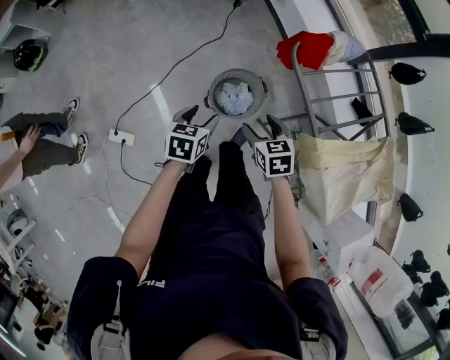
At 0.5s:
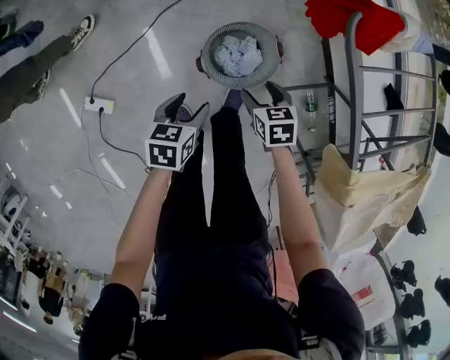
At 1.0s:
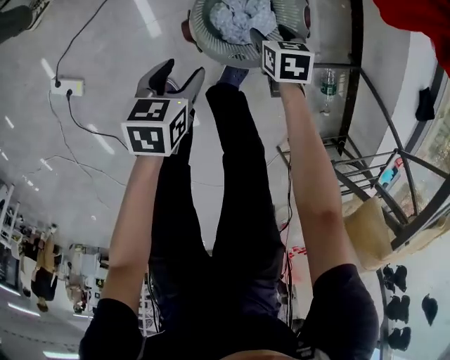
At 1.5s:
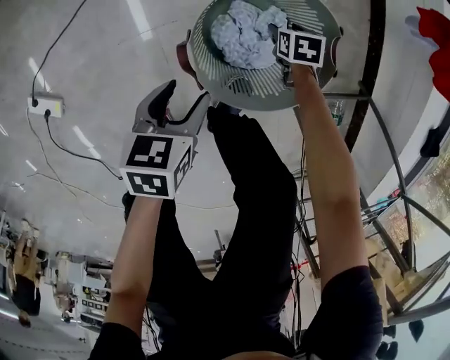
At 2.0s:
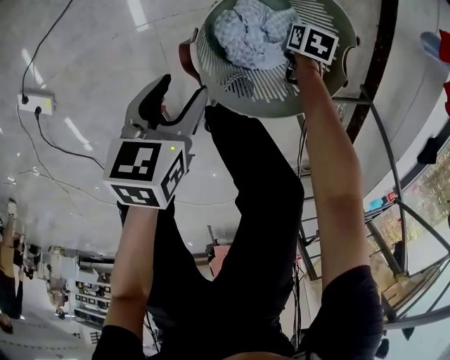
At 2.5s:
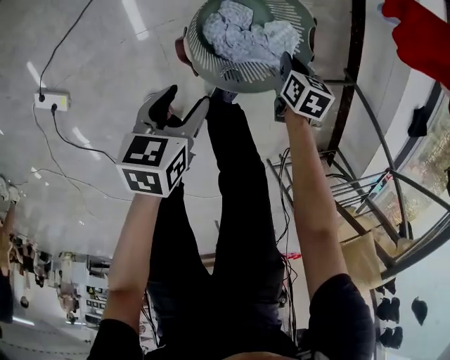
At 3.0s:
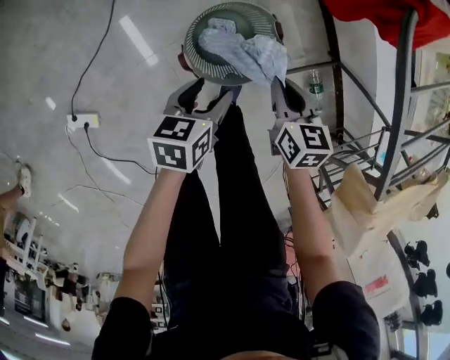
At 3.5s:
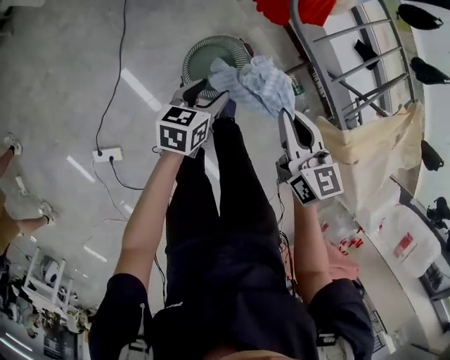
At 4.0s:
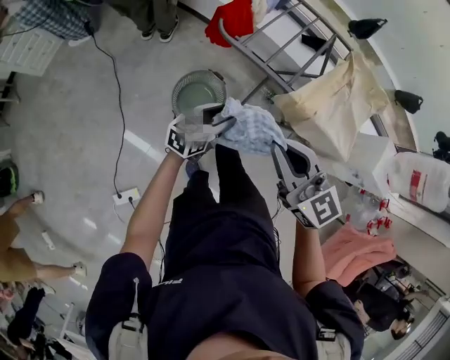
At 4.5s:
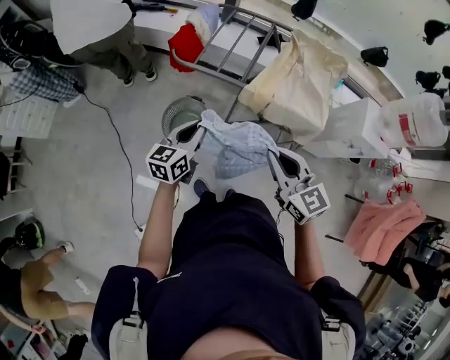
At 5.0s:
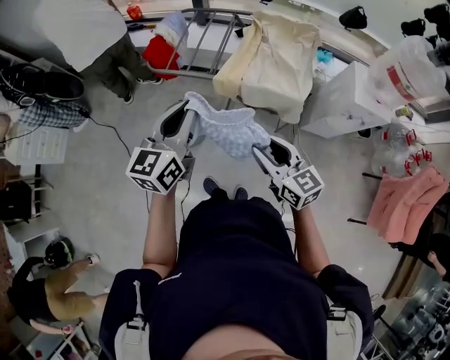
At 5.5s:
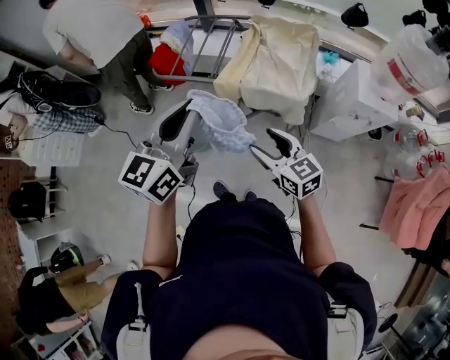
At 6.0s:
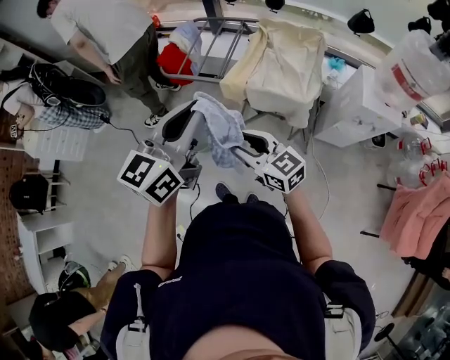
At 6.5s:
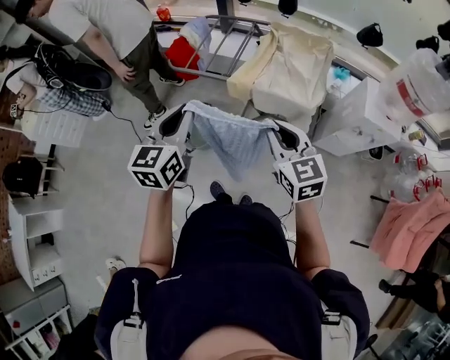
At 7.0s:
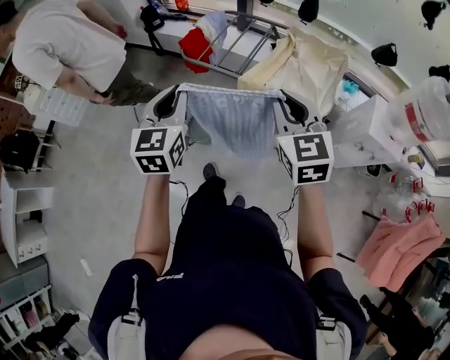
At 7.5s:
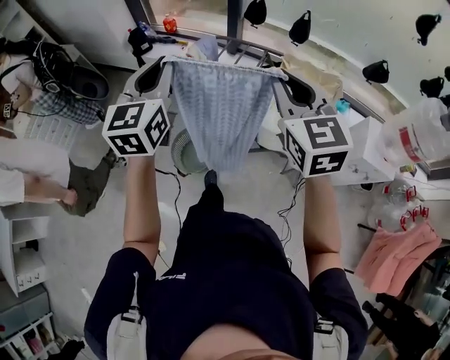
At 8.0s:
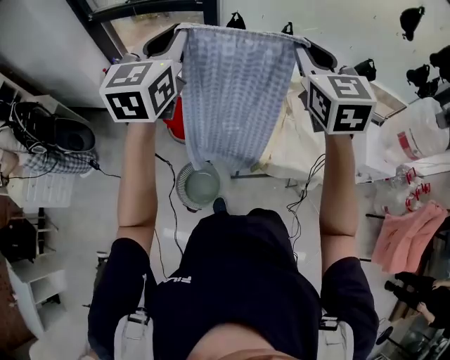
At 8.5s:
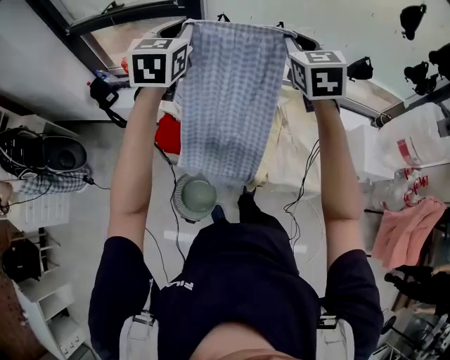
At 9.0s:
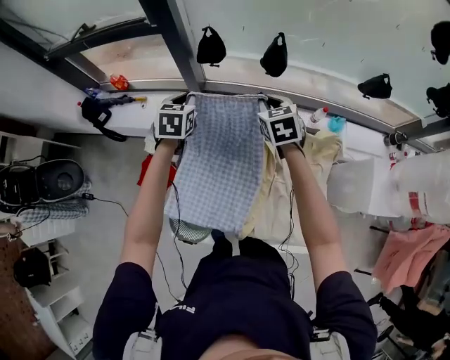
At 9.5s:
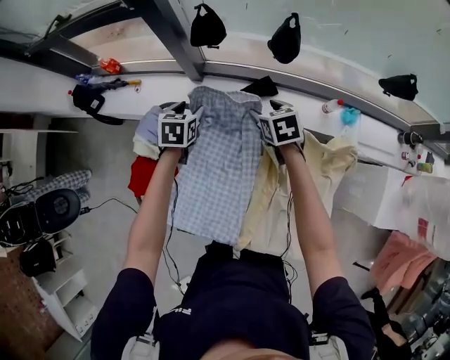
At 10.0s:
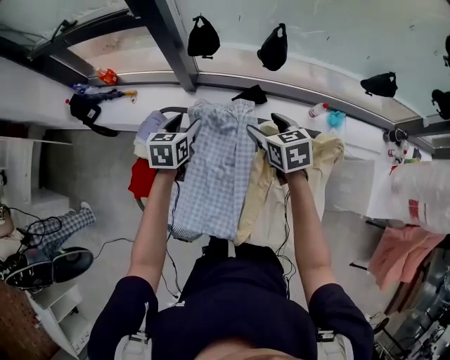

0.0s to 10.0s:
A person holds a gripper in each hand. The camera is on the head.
0.0s to 2.0s: Both grippers travel together downward, approximately 60 cm. The left gripper rotates roughly 20 degrees. Meanwhile the right gripper turns by approximately 30 degrees, and closes its fingers.
2.0s to 4.0s: The right gripper moves upward, some 1 m, and angles its fingers upward, by approximately 70 degrees, while the left gripper heads upward, covering about 50 cm, and points its fingers roughly 30 degrees further upward.
4.0s to 6.0s: The right gripper heads to the right and backward, covering roughly 20 cm, and opens; the left gripper moves upward and to the right, some 40 cm, rotates roughly 30 degrees, and closes up.
6.0s to 8.0s: The two grippers travel together, forward, roughly 40 cm. The left gripper turns by roughly 20 degrees. Meanwhile the right gripper travels upward by roughly 30 cm, swivels about 50 degrees, and closes up.
8.0s to 10.0s: The grippers both shift downward and forward by about 50 cm. The right gripper tilts its fingers roughly 30 degrees downward, and opens; the left gripper angles its fingers downward, by roughly 40 degrees, and opens up.

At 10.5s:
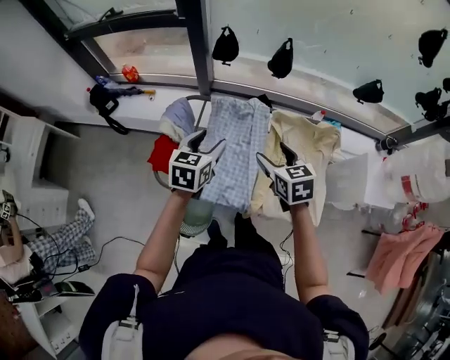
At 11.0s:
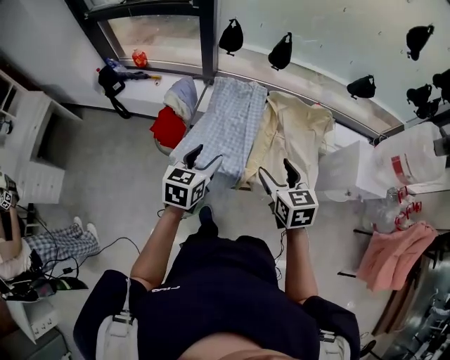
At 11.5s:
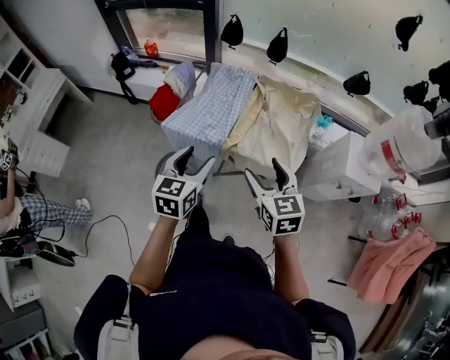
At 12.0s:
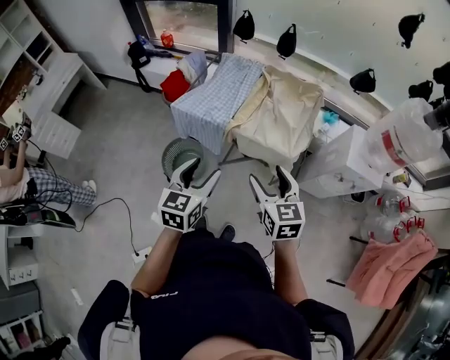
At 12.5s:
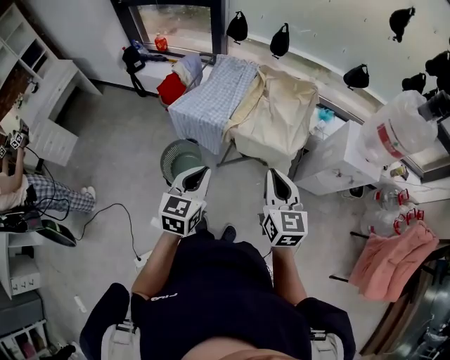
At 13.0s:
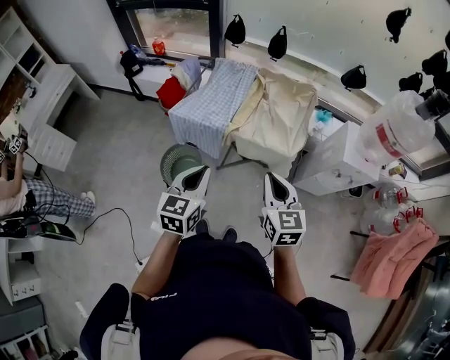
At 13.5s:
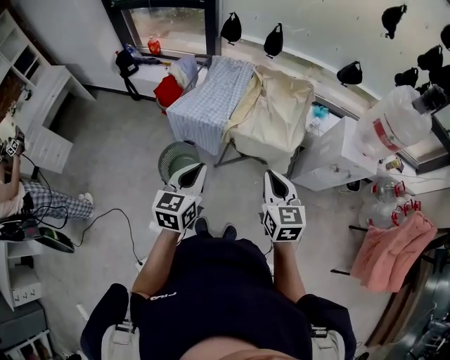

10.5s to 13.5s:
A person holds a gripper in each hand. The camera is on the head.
10.5s to 12.0s: Both grippers are carried backward, roughly 40 cm.
12.0s to 13.5s: The left gripper closes up, while the right gripper closes its fingers.

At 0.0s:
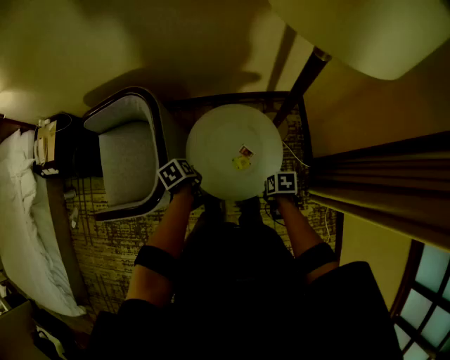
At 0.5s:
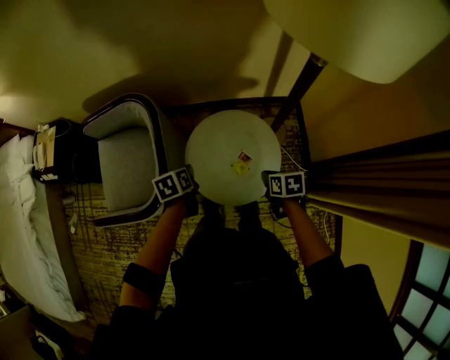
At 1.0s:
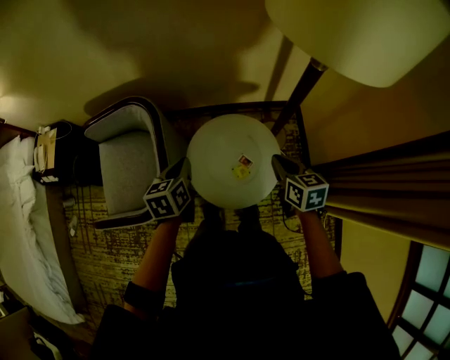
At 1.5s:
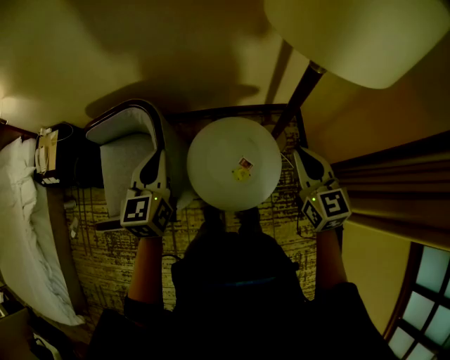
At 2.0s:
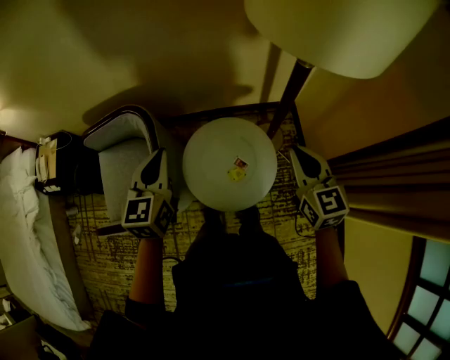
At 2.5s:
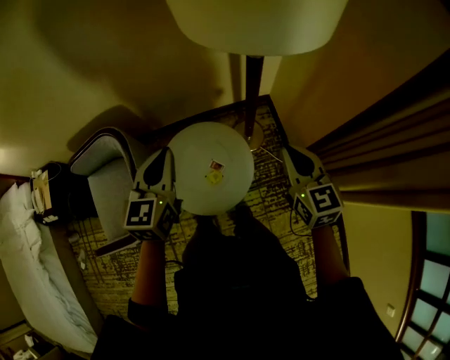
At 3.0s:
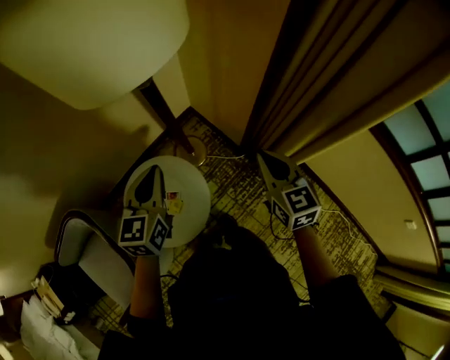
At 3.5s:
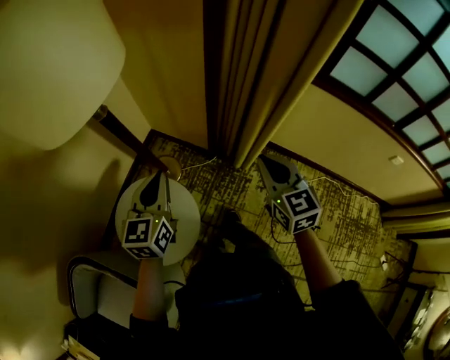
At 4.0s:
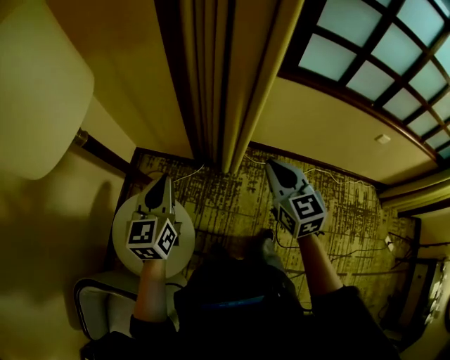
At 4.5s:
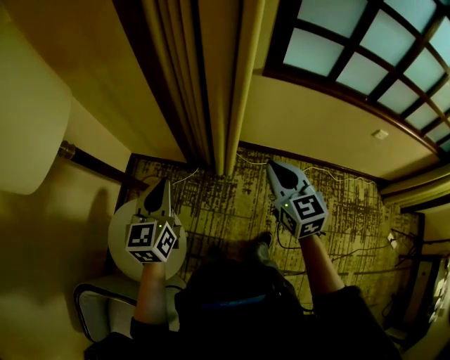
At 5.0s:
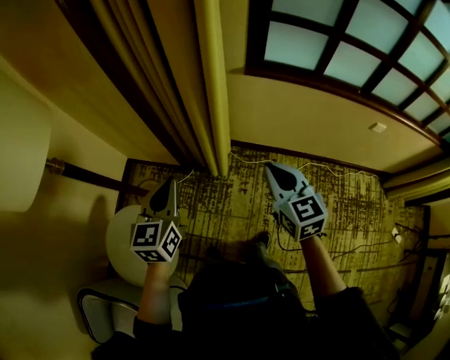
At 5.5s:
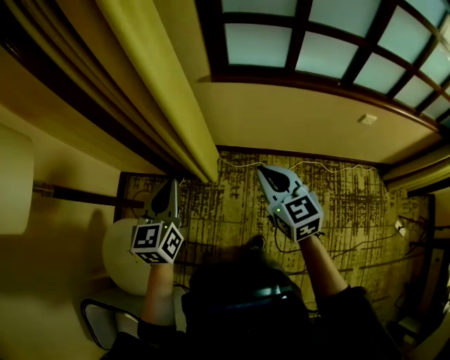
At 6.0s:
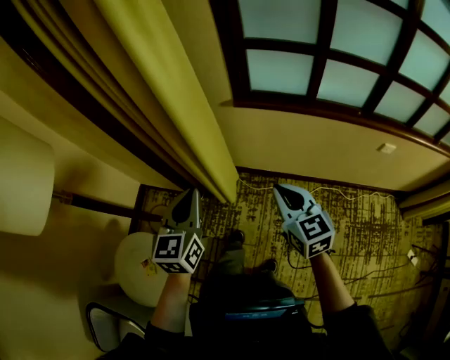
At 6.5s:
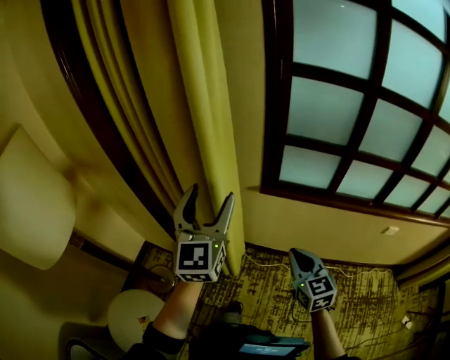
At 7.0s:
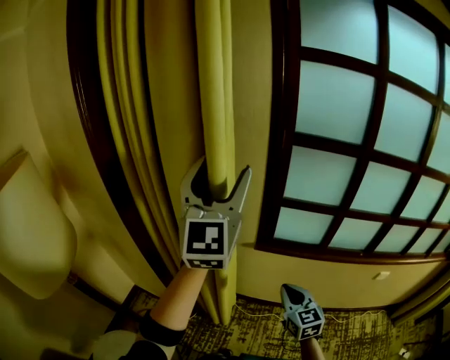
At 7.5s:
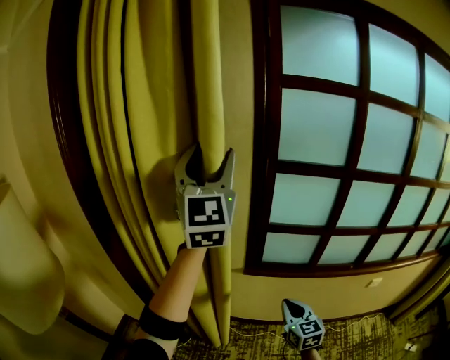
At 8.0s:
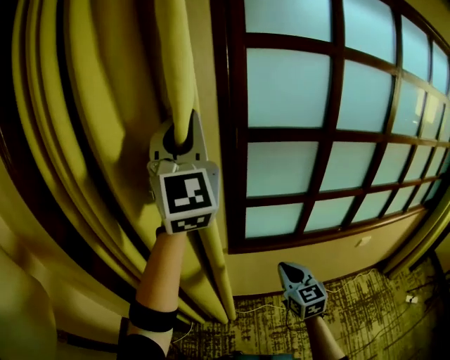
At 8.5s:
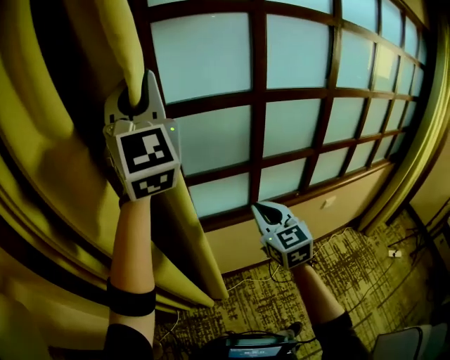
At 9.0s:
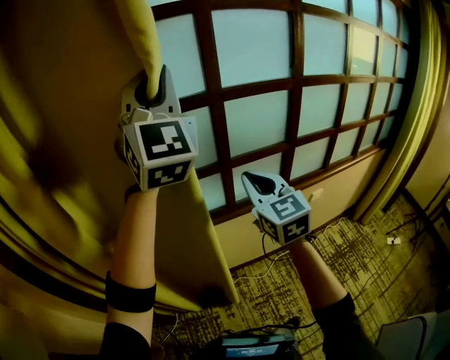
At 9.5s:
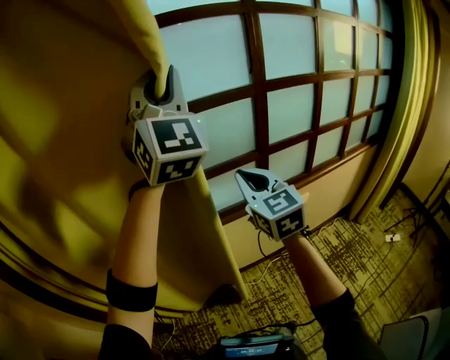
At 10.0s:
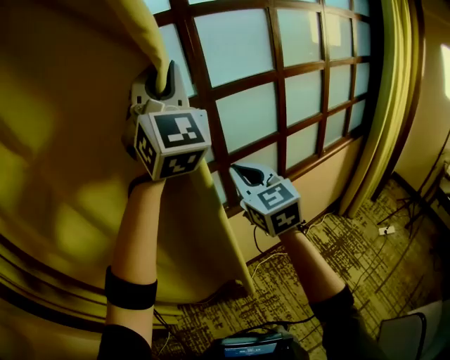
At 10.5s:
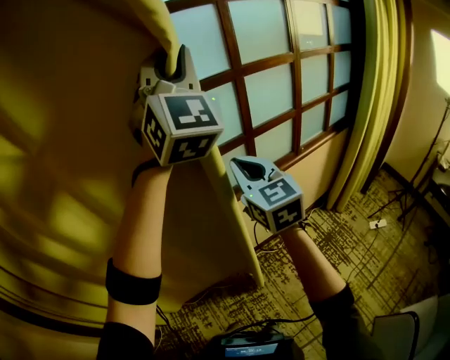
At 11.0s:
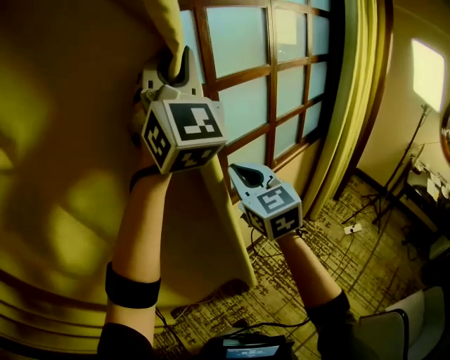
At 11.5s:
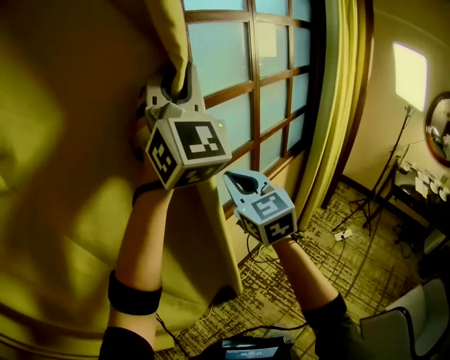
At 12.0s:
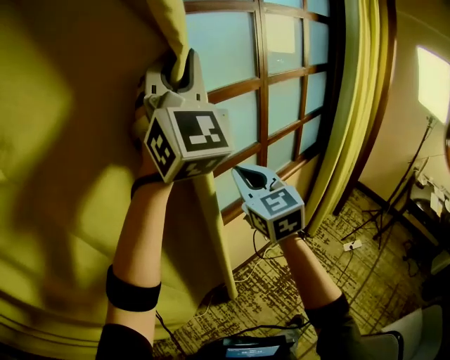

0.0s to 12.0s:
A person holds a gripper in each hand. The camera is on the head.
0.0s to 2.0s: The grippers both shift upward by approximately 35 cm. The left gripper tips its fingers upward by about 50 degrees; the right gripper angles its fingers upward, by some 60 degrees.
2.0s to 4.0s: The left gripper shifts by about 40 cm, and turns by roughly 70 degrees. Meanwhile the right gripper ends up about 40 cm from where it was, and turns by about 70 degrees.
4.0s to 6.0s: Both grippers travel together to the right, some 30 cm.
6.0s to 8.0s: The right gripper heads forward and upward, covering some 20 cm, and swivels some 20 degrees; the left gripper heads upward and forward, covering about 60 cm, tilts its fingers roughly 40 degrees upward, and opens, then closes once more.
8.0s to 10.0s: The pair of grippers is taken to the right, approximately 50 cm. The right gripper shifts some 20 cm upward.
10.0s to 12.0s: The right gripper heads to the right and forward, covering about 35 cm; the left gripper moves to the right, some 30 cm.

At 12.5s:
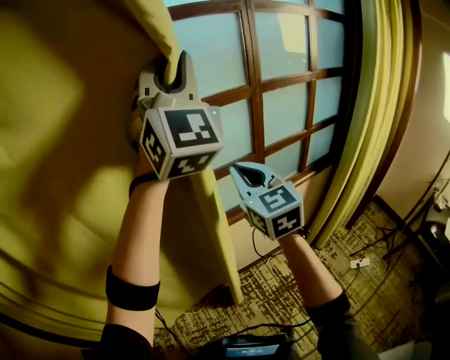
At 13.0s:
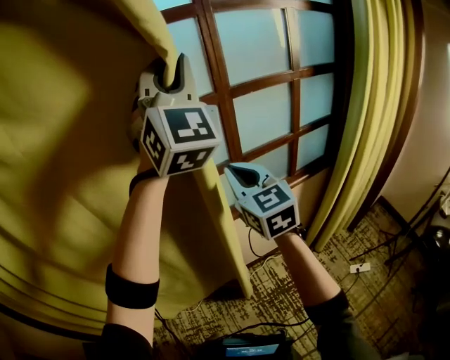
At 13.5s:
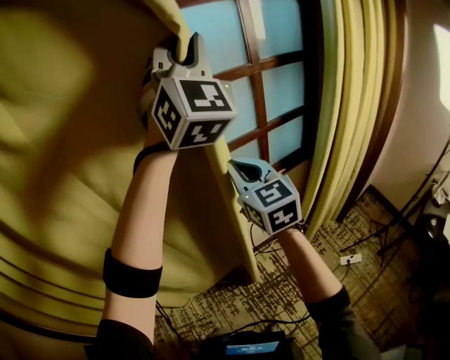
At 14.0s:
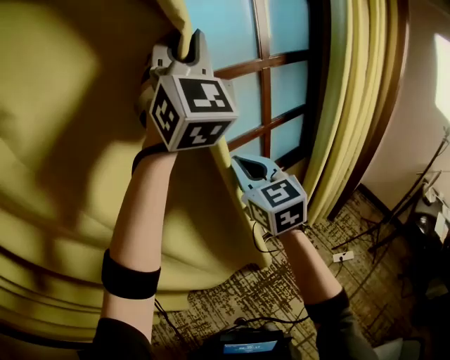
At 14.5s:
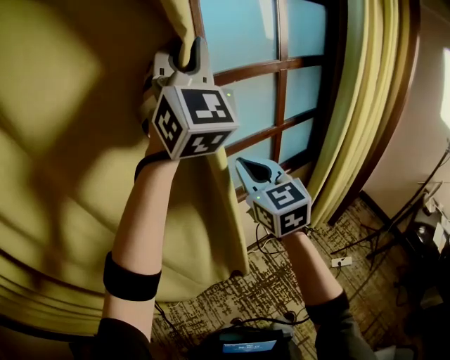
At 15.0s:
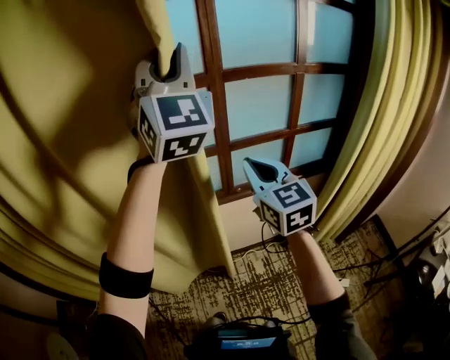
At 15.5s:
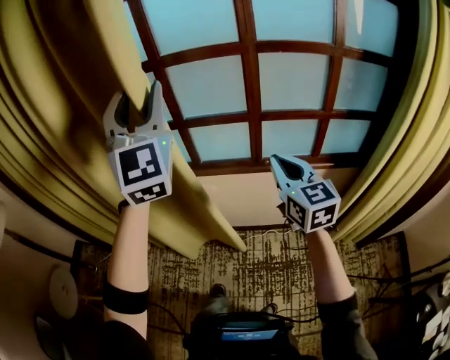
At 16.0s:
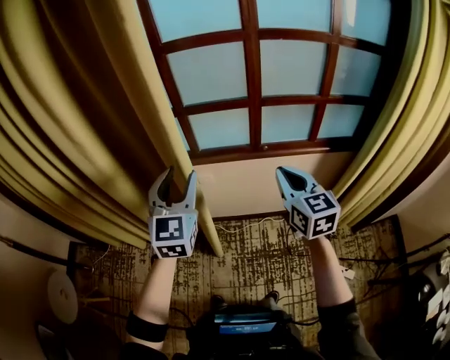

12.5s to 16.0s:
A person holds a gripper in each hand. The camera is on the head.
12.5s to 14.5s: Both grippers travel together to the right, some 15 cm.
14.5s to 16.0s: The left gripper moves downward, some 35 cm, tilts its fingers about 30 degrees downward, and opens. The right gripper moves some 20 cm, and swivels about 20 degrees.
